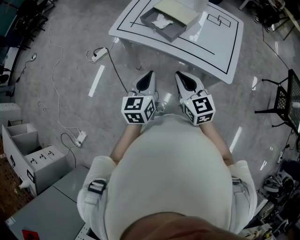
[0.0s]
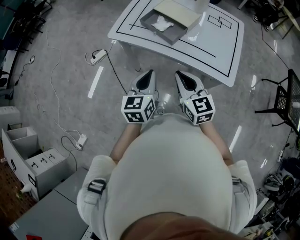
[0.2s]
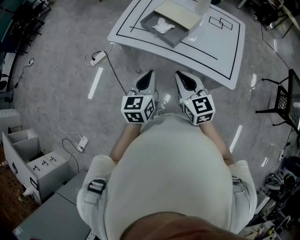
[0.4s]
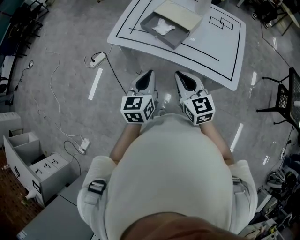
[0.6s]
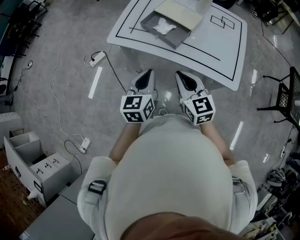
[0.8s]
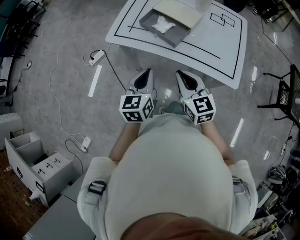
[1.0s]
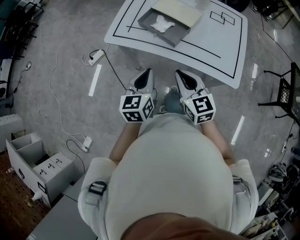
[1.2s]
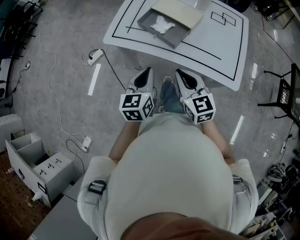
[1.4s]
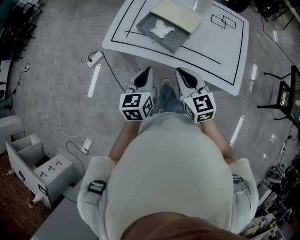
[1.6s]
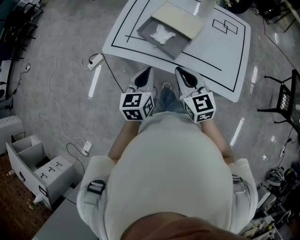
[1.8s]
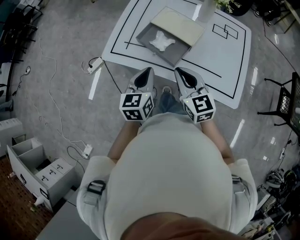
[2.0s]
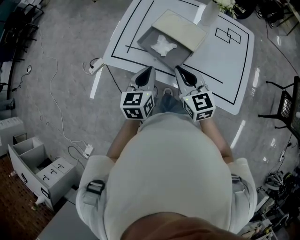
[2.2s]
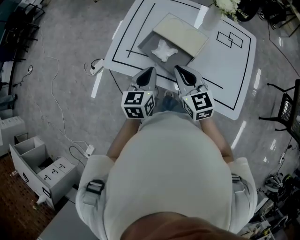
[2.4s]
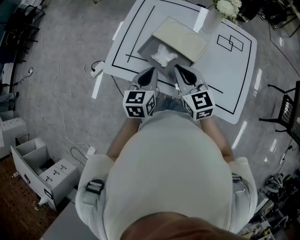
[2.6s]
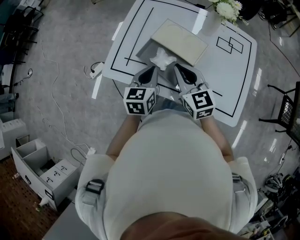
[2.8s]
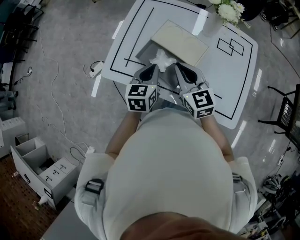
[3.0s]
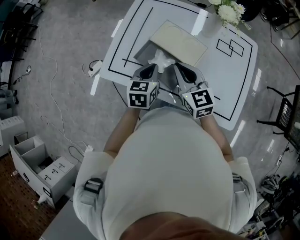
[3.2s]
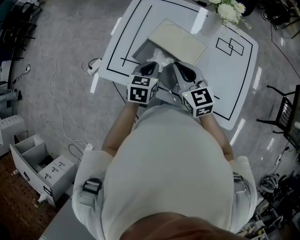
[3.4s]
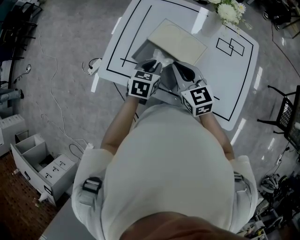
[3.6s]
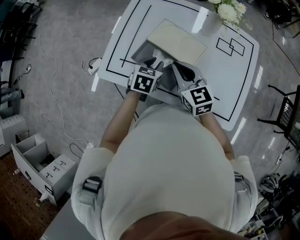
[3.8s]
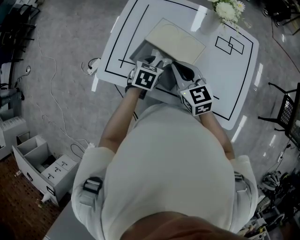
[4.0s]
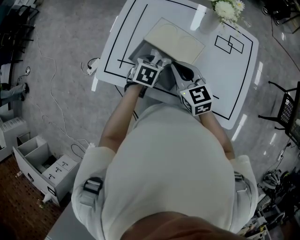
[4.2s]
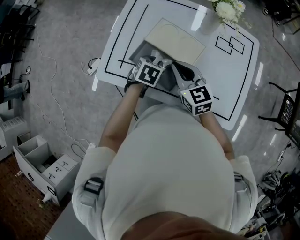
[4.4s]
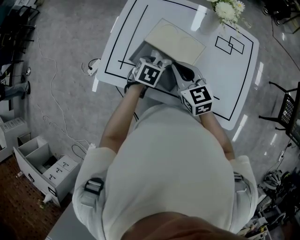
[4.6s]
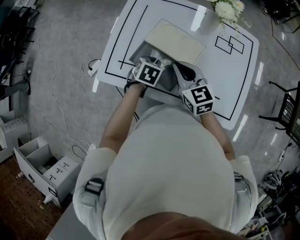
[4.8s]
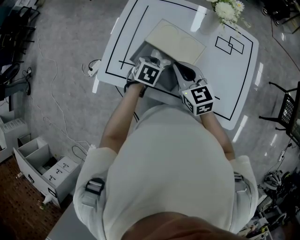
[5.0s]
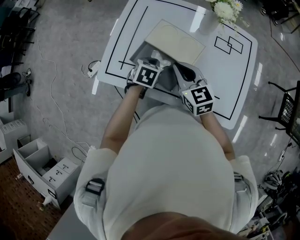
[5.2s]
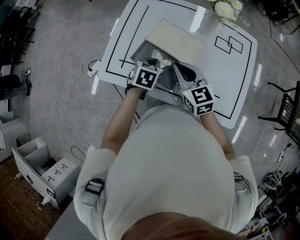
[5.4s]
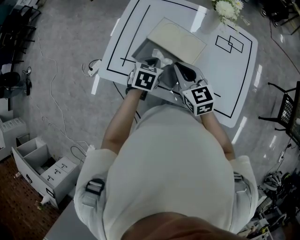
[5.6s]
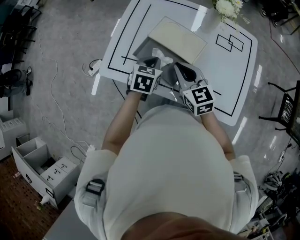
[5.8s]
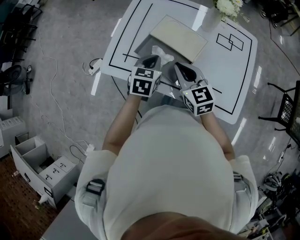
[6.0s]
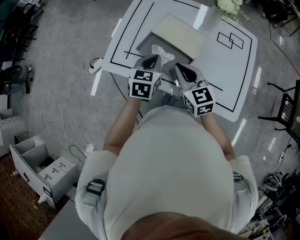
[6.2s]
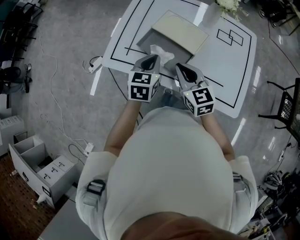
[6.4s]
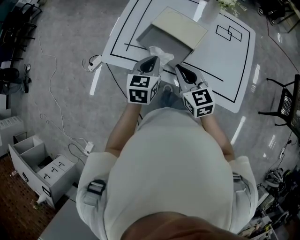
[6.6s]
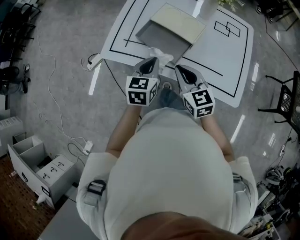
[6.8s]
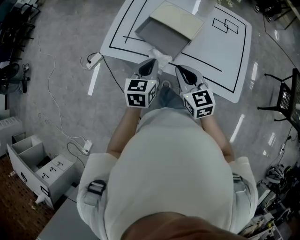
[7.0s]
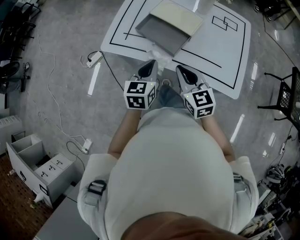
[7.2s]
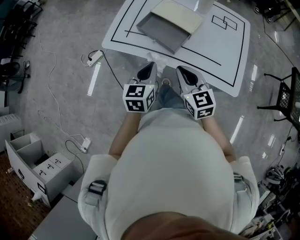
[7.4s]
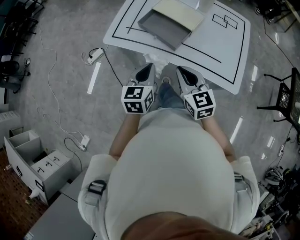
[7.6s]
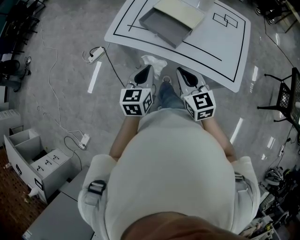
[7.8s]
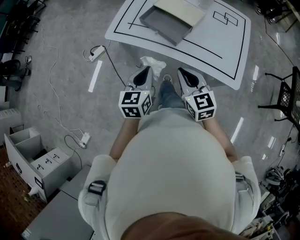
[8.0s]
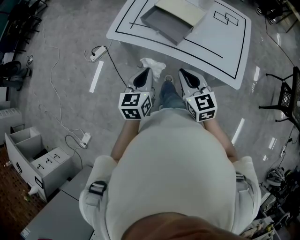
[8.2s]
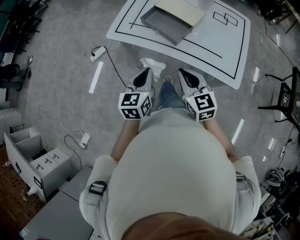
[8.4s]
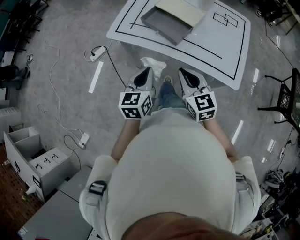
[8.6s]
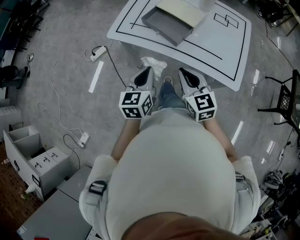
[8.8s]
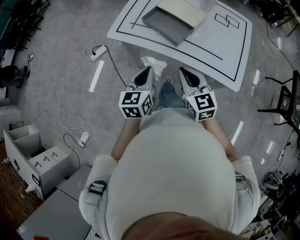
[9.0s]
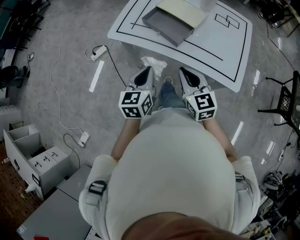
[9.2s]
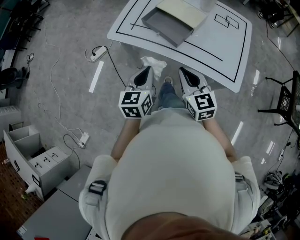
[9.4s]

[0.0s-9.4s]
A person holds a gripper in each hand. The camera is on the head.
0.0s to 1.6s: Both grippers move forward, roughly 15 cm.
1.6s to 3.2s: The two grippers go some 20 cm forward.
3.2s to 4.8s: The left gripper shifts some 10 cm downward, and turns by some 30 degrees.
4.8s to 6.2s: The left gripper is displaced upward by about 10 cm, and swivels approximately 30 degrees, while the right gripper travels backward by approximately 5 cm.
6.2s to 7.8s: Both grippers travel together backward, some 20 cm.
7.8s to 9.4s: The grippers stay close to where they were, moving slightly.

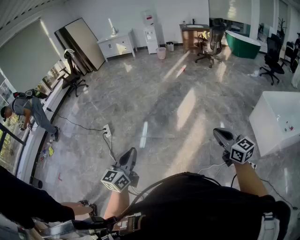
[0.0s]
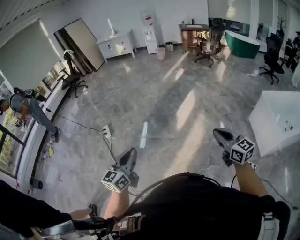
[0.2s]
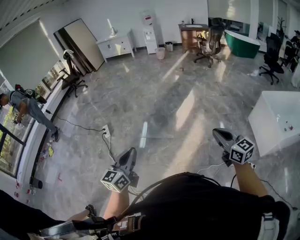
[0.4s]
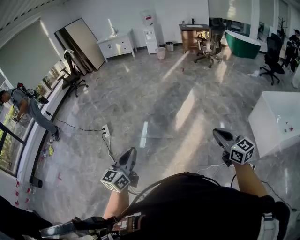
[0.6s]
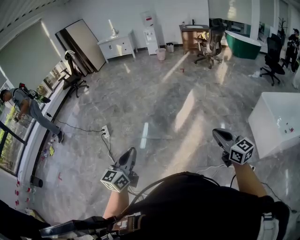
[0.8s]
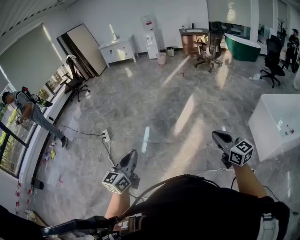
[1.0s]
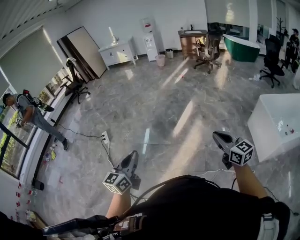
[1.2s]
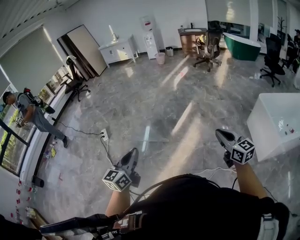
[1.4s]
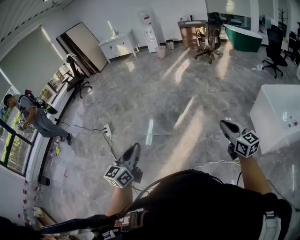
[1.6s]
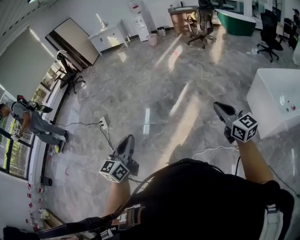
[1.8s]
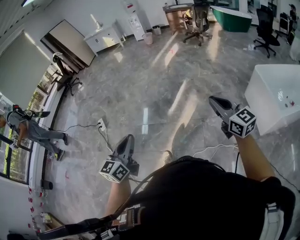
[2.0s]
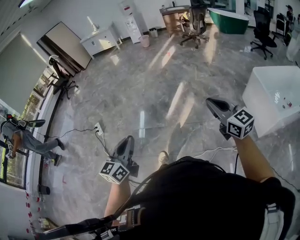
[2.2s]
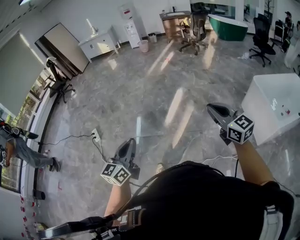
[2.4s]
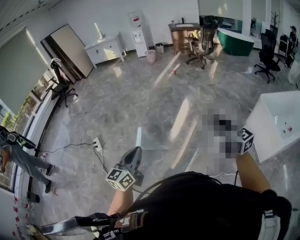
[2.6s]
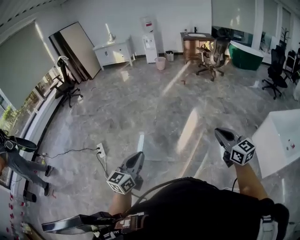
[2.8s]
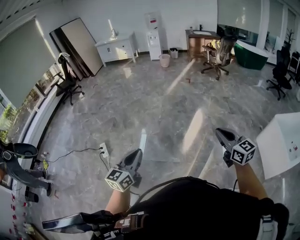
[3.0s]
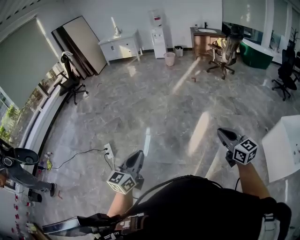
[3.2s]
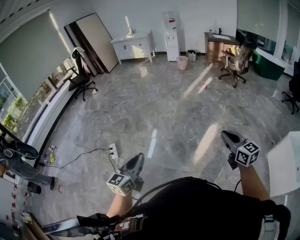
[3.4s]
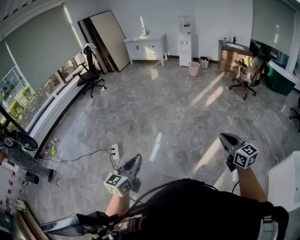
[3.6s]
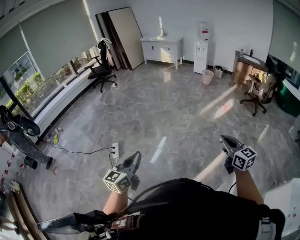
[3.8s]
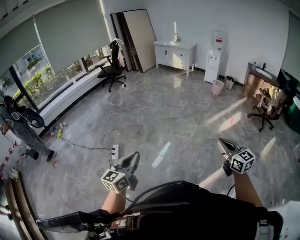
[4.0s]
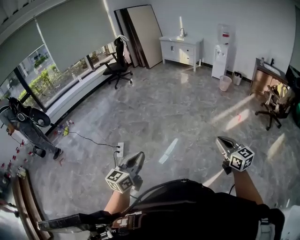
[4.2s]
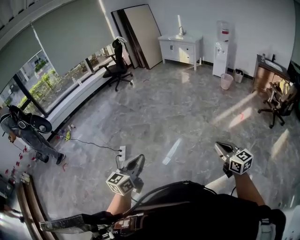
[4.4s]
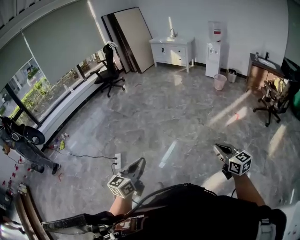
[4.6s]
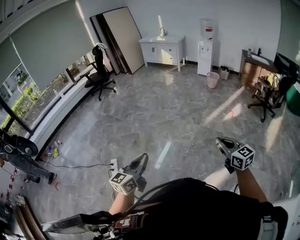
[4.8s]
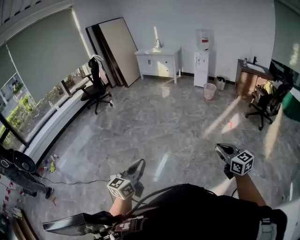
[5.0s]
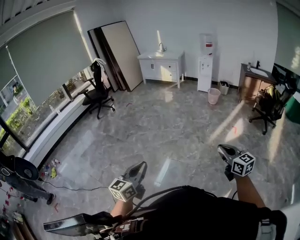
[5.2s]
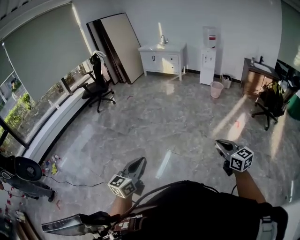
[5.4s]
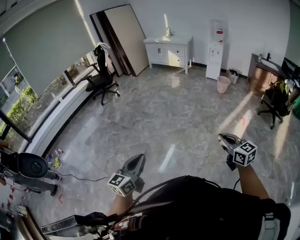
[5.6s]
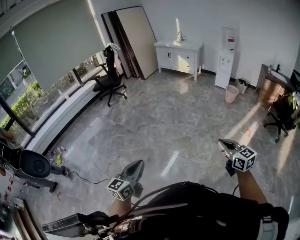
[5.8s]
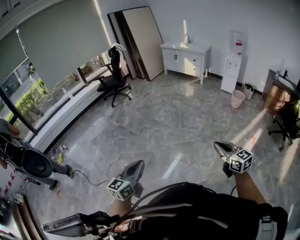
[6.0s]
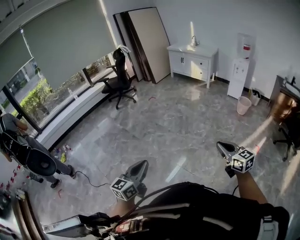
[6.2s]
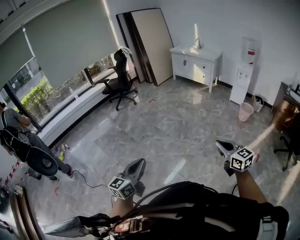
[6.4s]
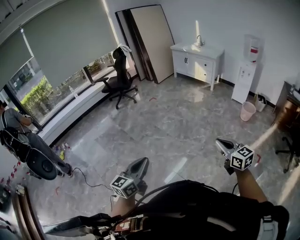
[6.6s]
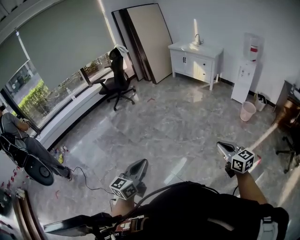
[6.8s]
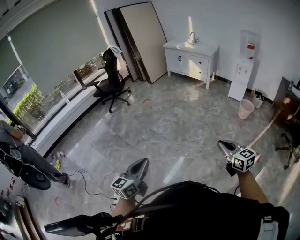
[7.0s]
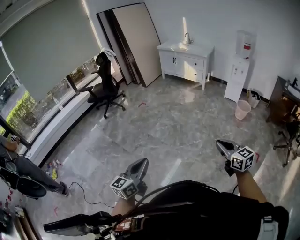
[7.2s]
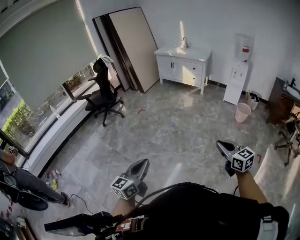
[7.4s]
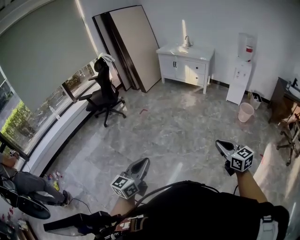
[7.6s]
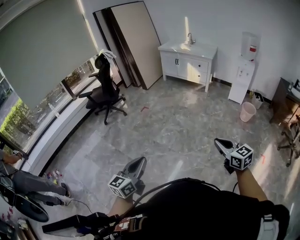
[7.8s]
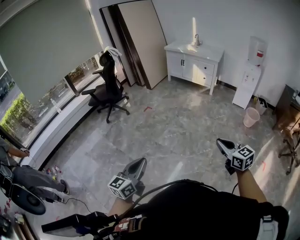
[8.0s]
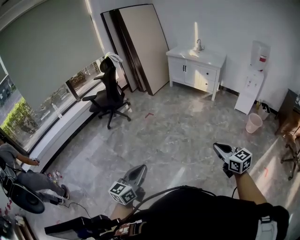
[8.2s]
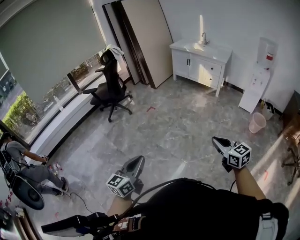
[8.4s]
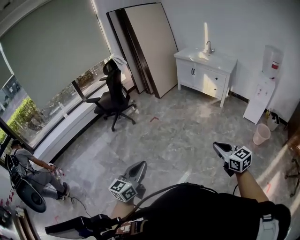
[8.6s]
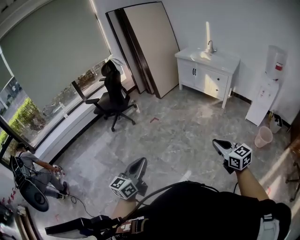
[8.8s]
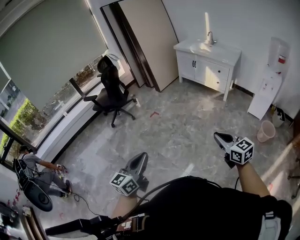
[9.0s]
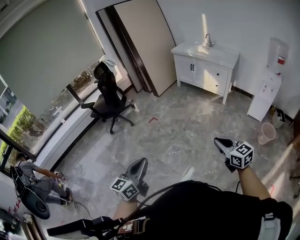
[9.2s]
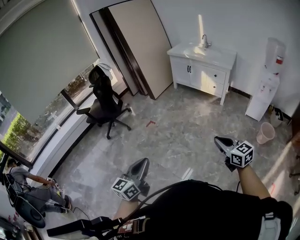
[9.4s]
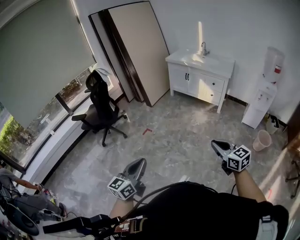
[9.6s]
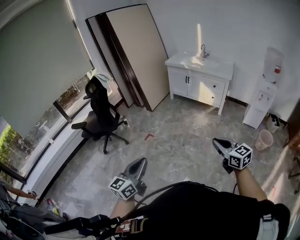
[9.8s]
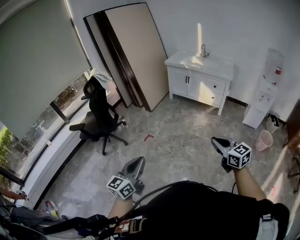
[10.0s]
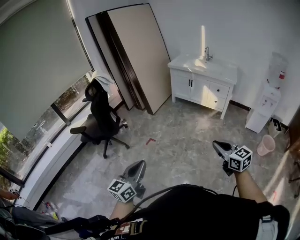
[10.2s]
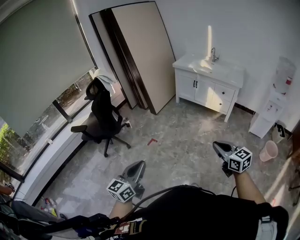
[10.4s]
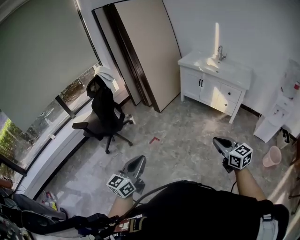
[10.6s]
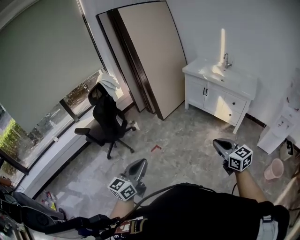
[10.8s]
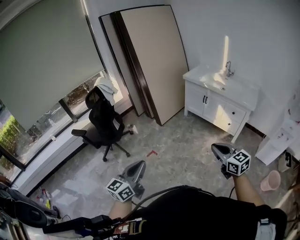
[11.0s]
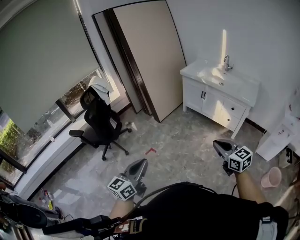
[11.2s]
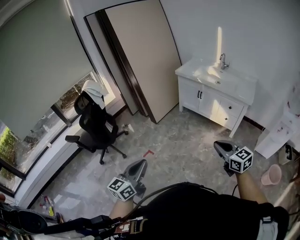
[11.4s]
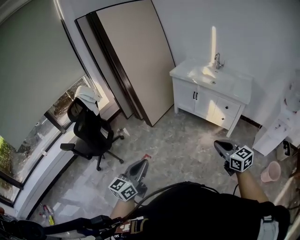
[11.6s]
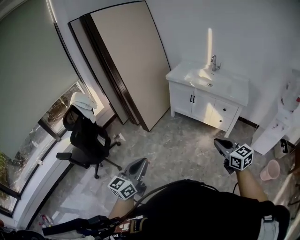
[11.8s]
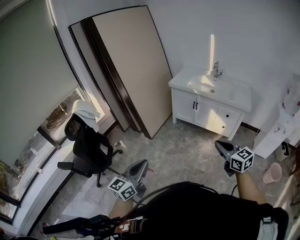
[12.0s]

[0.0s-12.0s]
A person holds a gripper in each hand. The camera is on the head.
0.0s to 1.6s: The grippers both shift to the right by about 20 cm.
1.6s to 3.0s: Both grippers are carried forward and to the left, about 50 cm.
3.0s to 4.4s: The right gripper changes place by roughly 50 cm, and changes its angle by roughly 30 degrees. Meanwhile the left gripper shifts by some 35 cm, and turns by roughly 30 degrees.
4.4s to 6.0s: Both grippers are carried forward and to the left, approximately 50 cm.
6.0s to 7.6s: The pair of grippers is taken forward, some 50 cm.
7.6s to 9.0s: The two grippers go approximately 35 cm forward.
9.0s to 10.4s: The two grippers go approximately 40 cm forward and to the left.
10.4s to 12.0s: The pair of grippers is taken forward, some 40 cm.

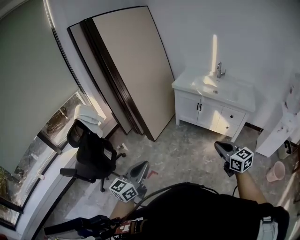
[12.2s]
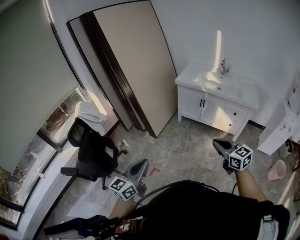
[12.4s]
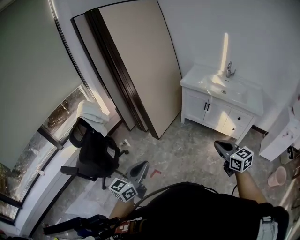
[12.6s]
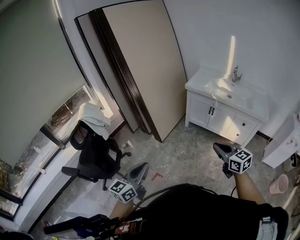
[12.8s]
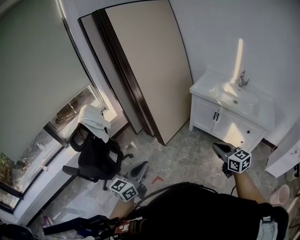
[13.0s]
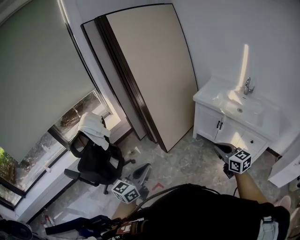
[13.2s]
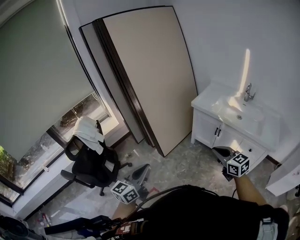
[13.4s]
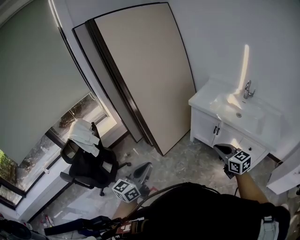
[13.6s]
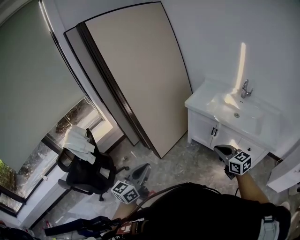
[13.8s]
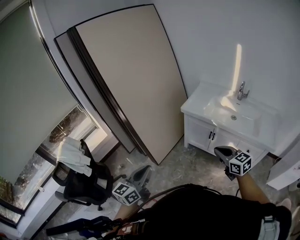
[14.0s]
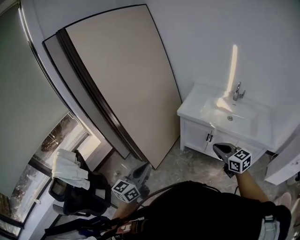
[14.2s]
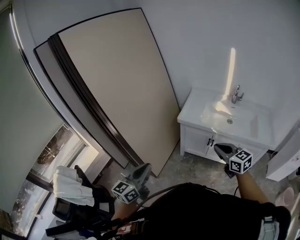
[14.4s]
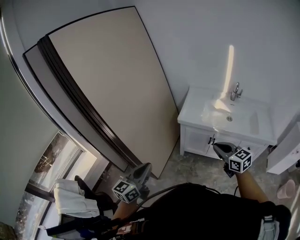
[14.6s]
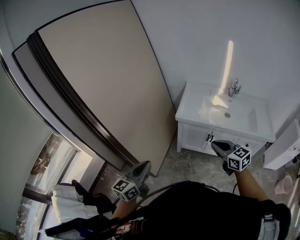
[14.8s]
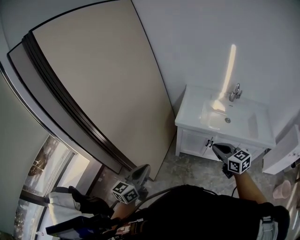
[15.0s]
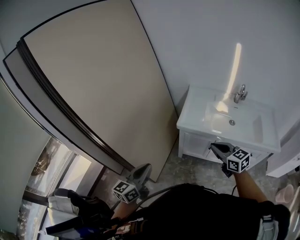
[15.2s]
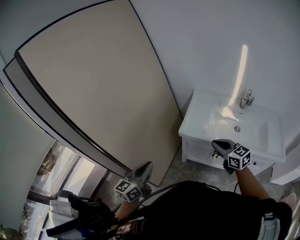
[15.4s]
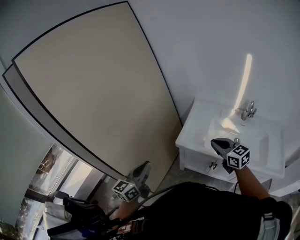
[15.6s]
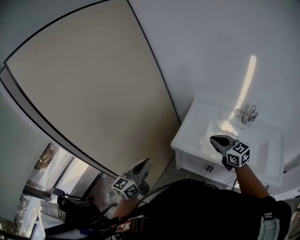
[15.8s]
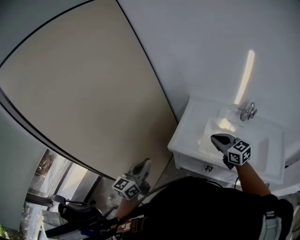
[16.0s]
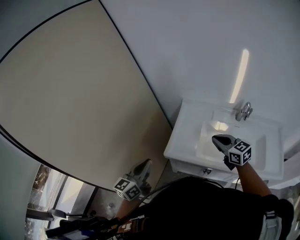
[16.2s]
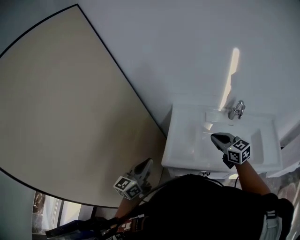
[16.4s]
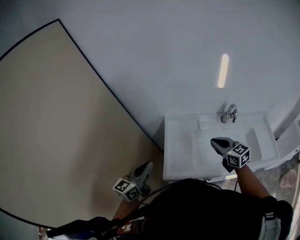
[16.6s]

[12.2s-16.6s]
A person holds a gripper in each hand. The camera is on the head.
12.2s to 13.6s: Both grippers travel together forward, about 30 cm.
13.6s to 15.2s: The two grippers go about 40 cm forward. The left gripper rotates about 20 degrees.
15.2s to 16.6s: The pair of grippers is taken approximately 40 cm.
